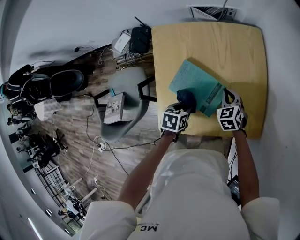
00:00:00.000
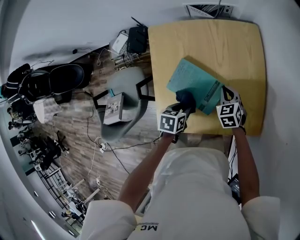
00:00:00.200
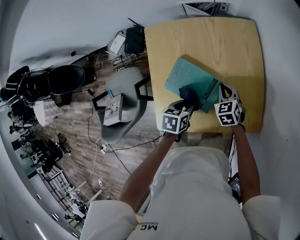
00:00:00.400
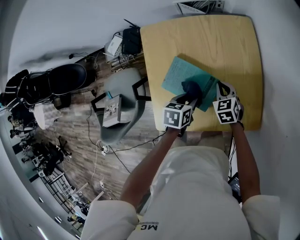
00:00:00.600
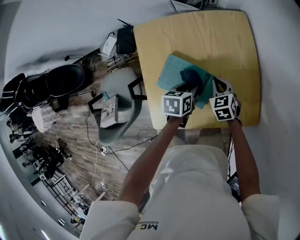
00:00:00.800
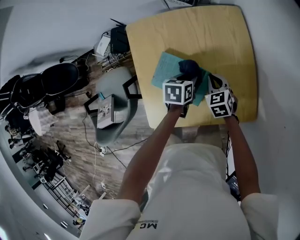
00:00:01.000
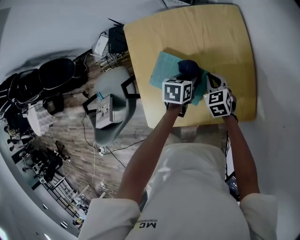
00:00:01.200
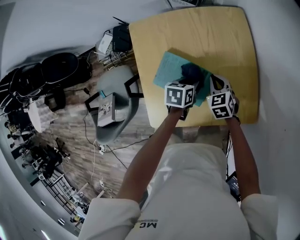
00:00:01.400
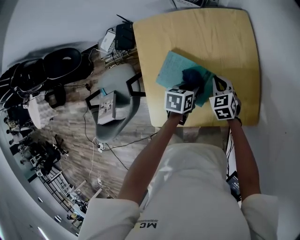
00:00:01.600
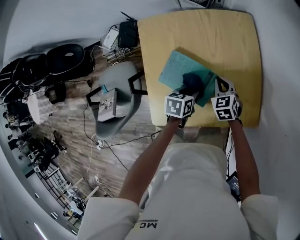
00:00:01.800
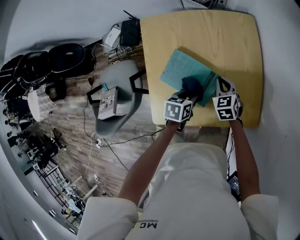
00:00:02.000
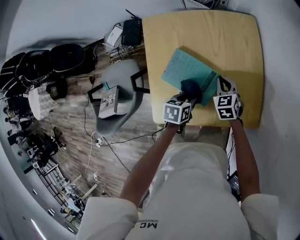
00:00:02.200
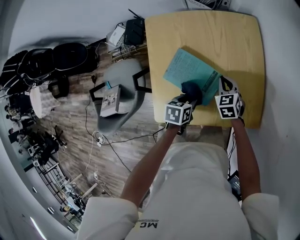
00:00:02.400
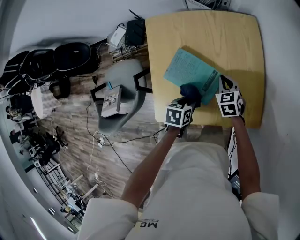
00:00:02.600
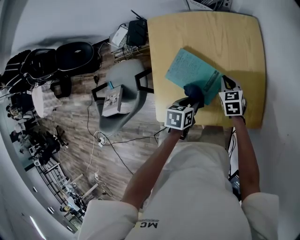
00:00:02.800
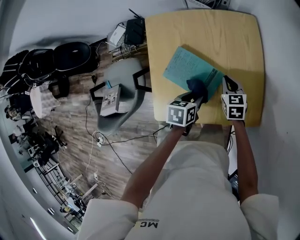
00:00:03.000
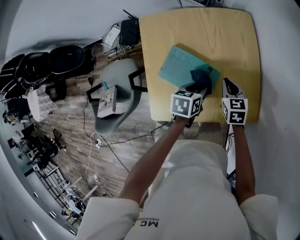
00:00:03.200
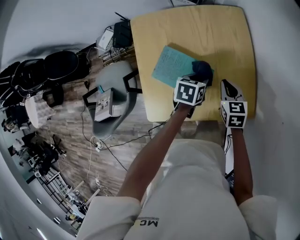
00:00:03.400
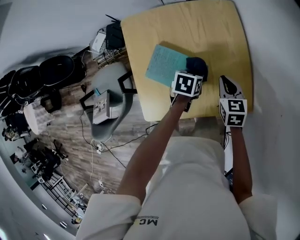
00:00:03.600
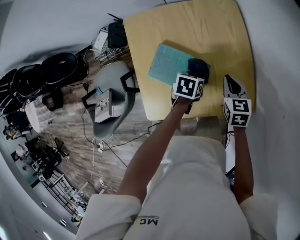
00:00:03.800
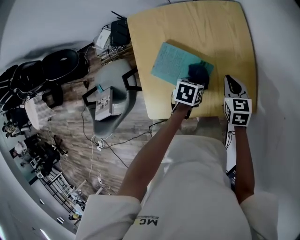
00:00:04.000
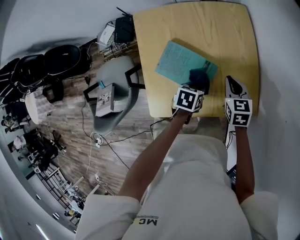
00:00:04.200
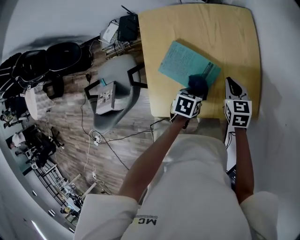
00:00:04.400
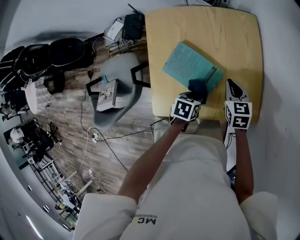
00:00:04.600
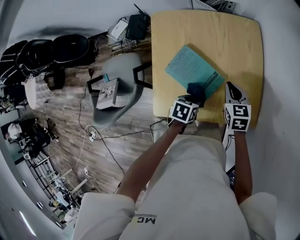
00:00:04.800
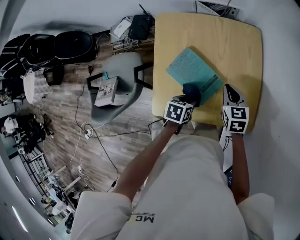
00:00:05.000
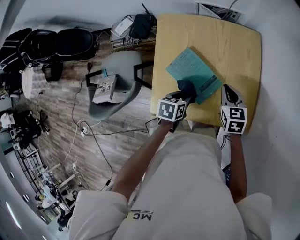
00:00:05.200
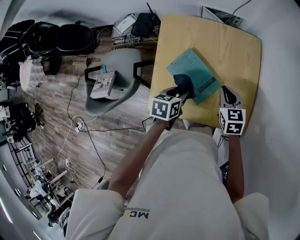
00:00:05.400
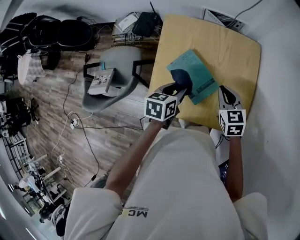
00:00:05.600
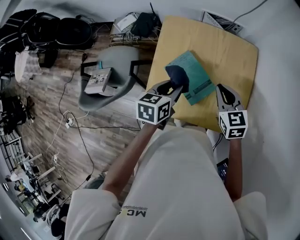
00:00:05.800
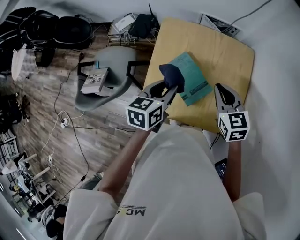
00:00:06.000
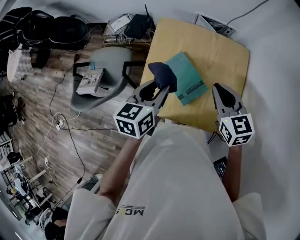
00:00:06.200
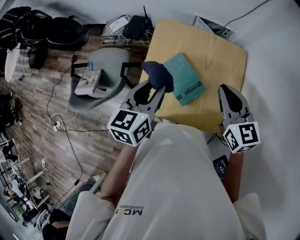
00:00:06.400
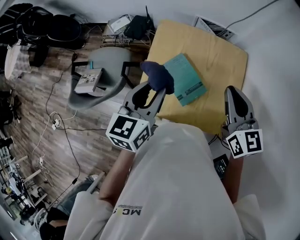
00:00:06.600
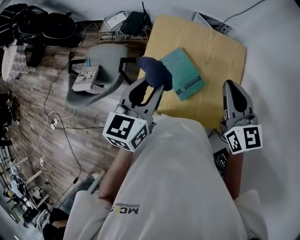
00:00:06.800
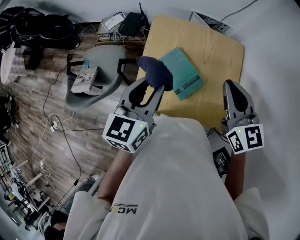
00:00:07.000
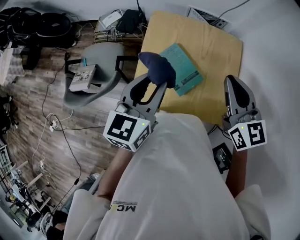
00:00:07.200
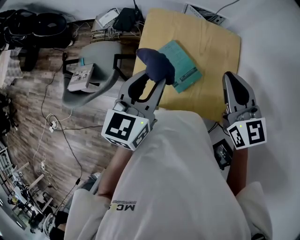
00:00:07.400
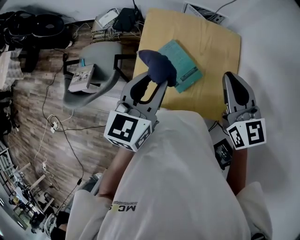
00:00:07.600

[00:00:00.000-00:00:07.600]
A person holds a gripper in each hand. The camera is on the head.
00:00:00.000 to 00:00:01.600: The left gripper is displaced forward and to the right by about 10 cm.
00:00:01.600 to 00:00:03.000: The left gripper travels backward by some 5 cm.
00:00:03.000 to 00:00:04.600: The right gripper ends up approximately 5 cm from where it was; the left gripper goes forward and returns, some 10 cm each way.
00:00:04.600 to 00:00:06.000: The grippers both shift upward by roughly 20 cm. The right gripper changes its angle by about 30 degrees, while the left gripper rotates about 40 degrees.
00:00:06.000 to 00:00:07.600: The grippers both shift upward by about 15 cm. The left gripper turns by some 20 degrees.

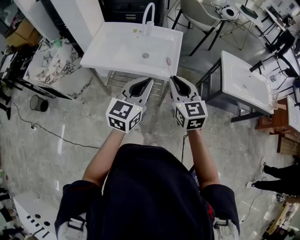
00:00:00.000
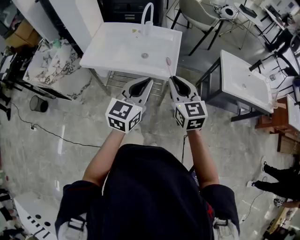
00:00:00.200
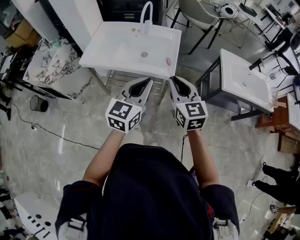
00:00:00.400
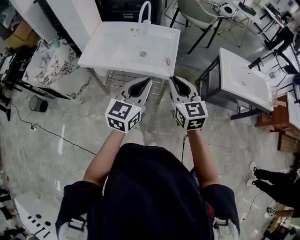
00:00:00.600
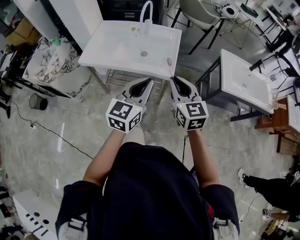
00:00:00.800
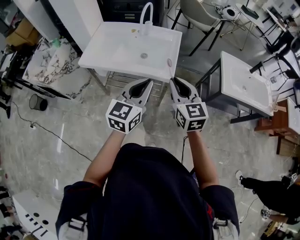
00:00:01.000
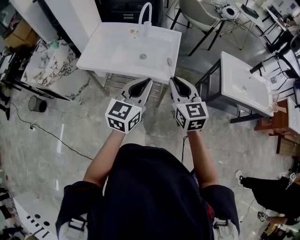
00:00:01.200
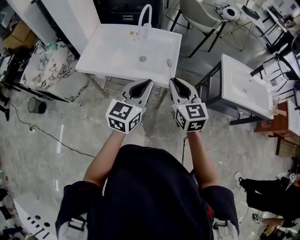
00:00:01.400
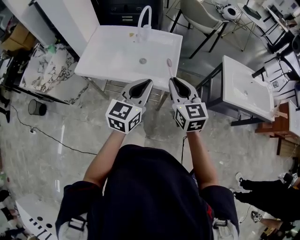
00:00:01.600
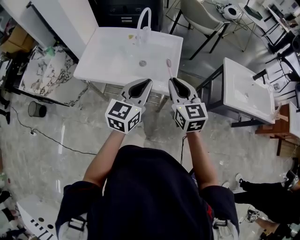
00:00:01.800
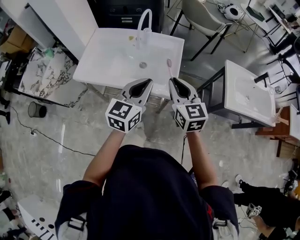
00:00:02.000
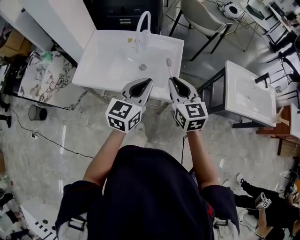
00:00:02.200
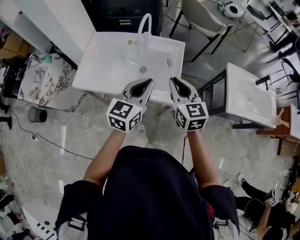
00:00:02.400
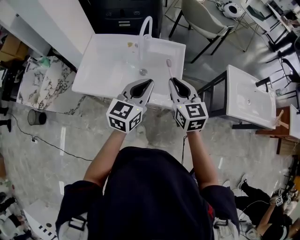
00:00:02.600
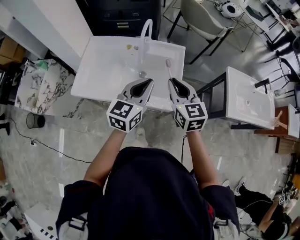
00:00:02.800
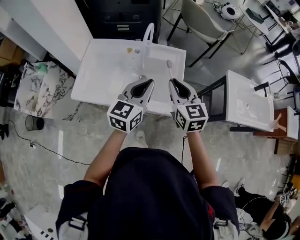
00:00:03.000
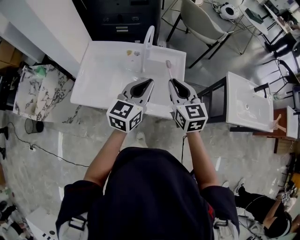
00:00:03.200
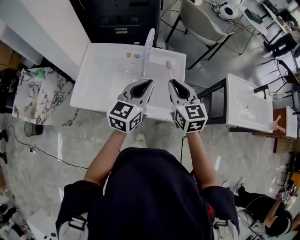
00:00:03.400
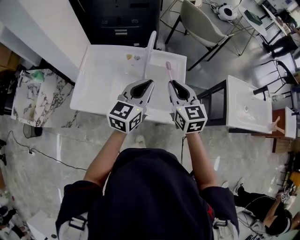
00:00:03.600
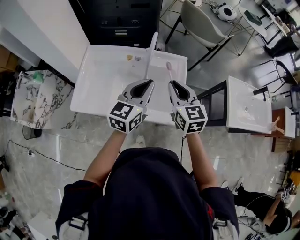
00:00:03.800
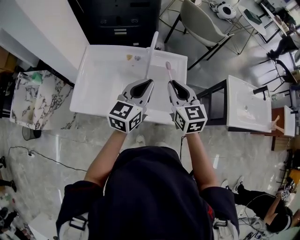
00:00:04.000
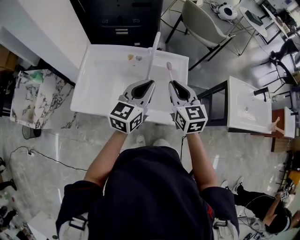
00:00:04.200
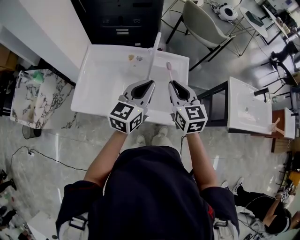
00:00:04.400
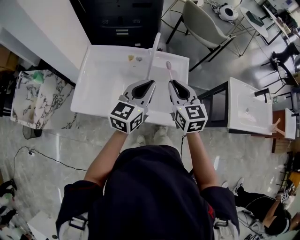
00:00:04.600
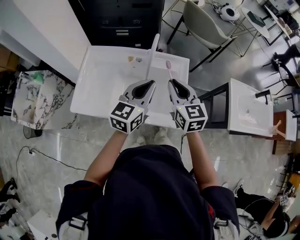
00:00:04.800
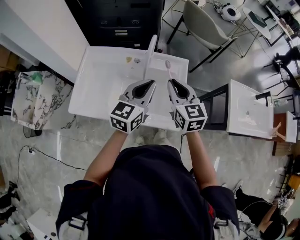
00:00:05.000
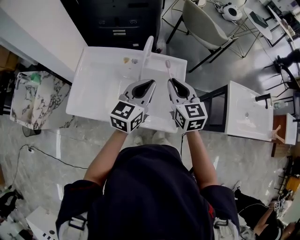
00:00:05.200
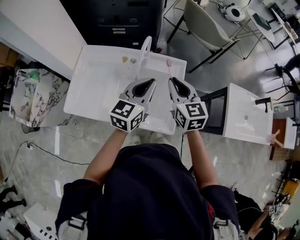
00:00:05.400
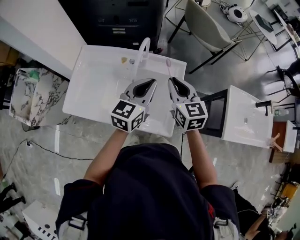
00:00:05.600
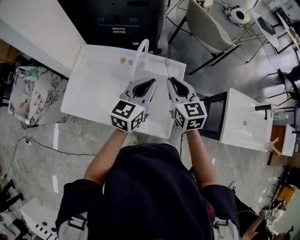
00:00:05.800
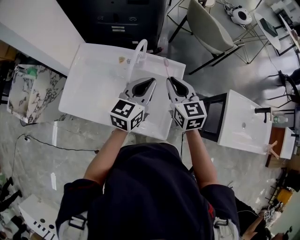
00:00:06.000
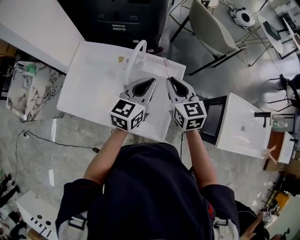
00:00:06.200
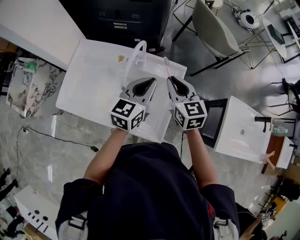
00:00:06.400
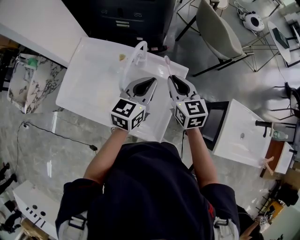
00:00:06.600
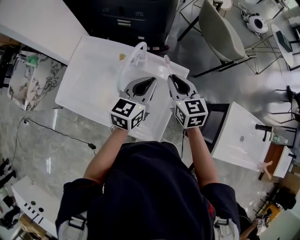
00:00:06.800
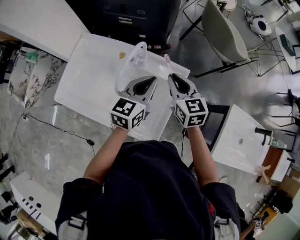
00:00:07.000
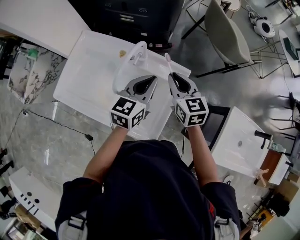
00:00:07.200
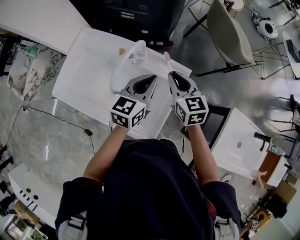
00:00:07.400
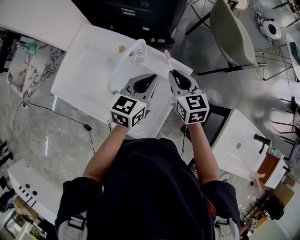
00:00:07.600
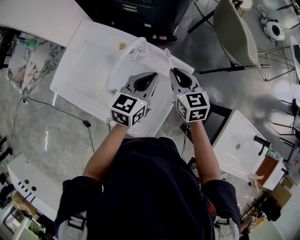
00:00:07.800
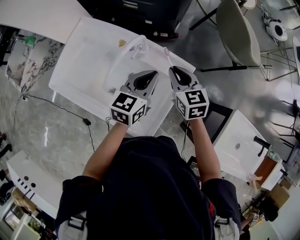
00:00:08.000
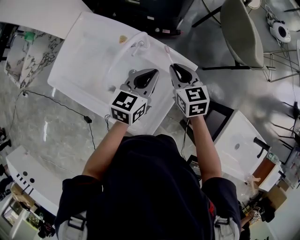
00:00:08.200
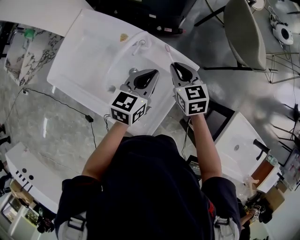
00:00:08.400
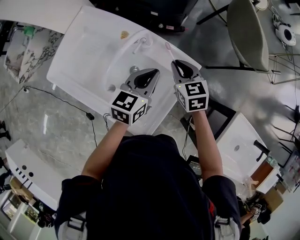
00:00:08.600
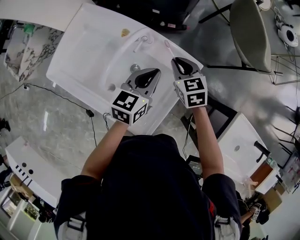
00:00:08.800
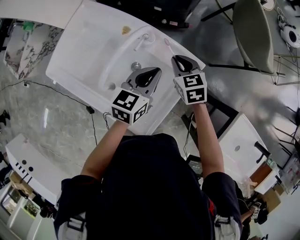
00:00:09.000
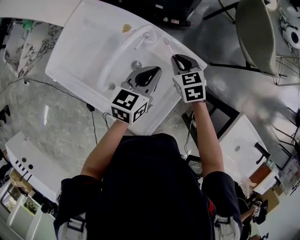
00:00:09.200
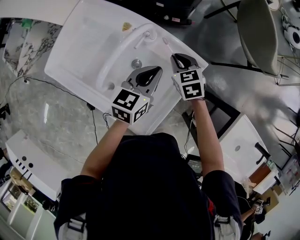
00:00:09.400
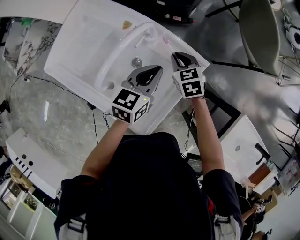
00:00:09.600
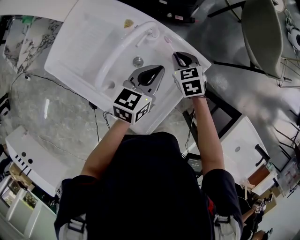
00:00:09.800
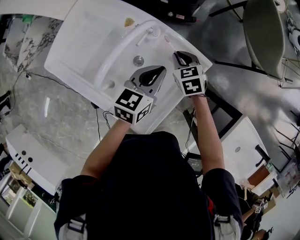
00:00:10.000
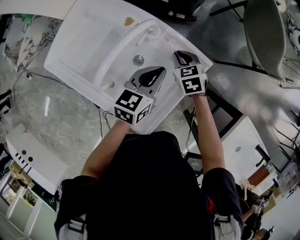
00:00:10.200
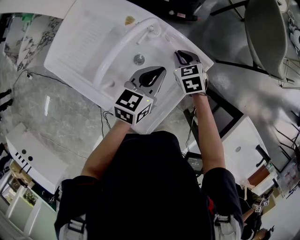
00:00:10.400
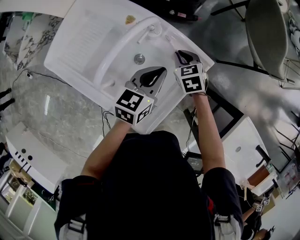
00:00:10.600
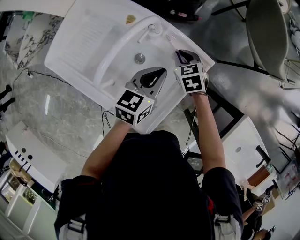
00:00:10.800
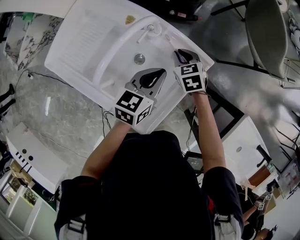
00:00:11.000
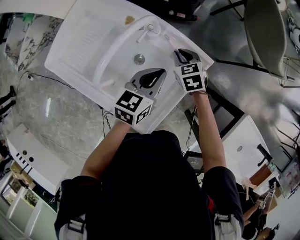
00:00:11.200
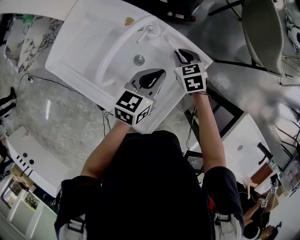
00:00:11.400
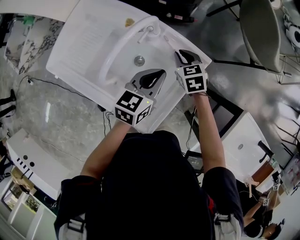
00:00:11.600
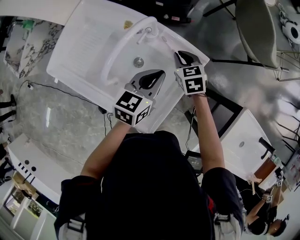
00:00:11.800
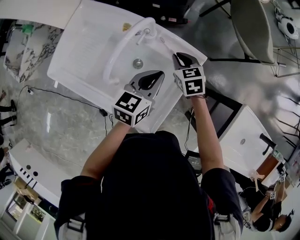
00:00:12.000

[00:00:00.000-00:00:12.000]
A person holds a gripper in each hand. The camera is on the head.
00:00:00.000 to 00:00:01.600: The grippers both shift forward by approximately 10 cm.
00:00:01.600 to 00:00:03.000: Both grippers move forward, about 15 cm.
00:00:03.000 to 00:00:04.400: Both grippers move forward, approximately 5 cm.
00:00:04.400 to 00:00:06.000: Both grippers travel together forward and to the right, approximately 10 cm.
00:00:06.000 to 00:00:07.600: Both grippers travel together forward and downward, approximately 10 cm.
00:00:07.600 to 00:00:09.000: The right gripper heads downward, covering approximately 10 cm; the left gripper moves downward, some 5 cm.
00:00:09.000 to 00:00:10.400: The right gripper heads downward, covering roughly 5 cm.
00:00:10.400 to 00:00:12.000: The right gripper ends up about 5 cm from where it was.

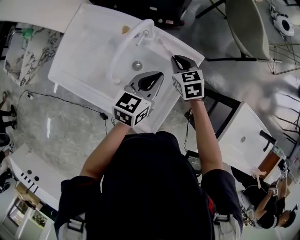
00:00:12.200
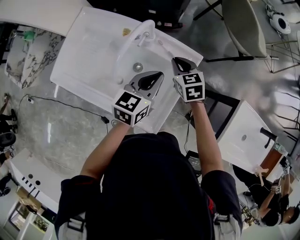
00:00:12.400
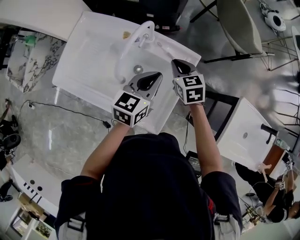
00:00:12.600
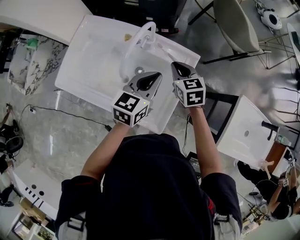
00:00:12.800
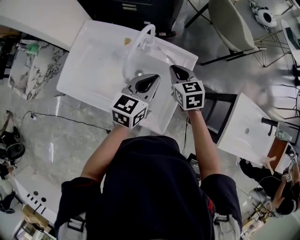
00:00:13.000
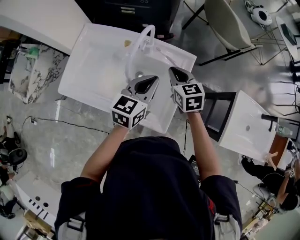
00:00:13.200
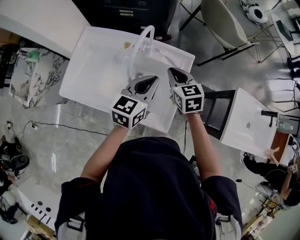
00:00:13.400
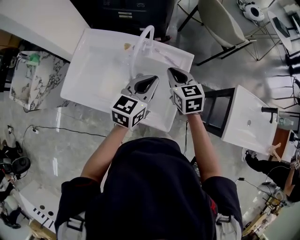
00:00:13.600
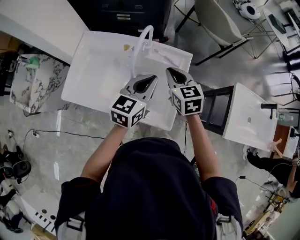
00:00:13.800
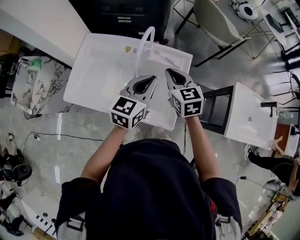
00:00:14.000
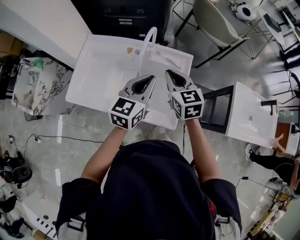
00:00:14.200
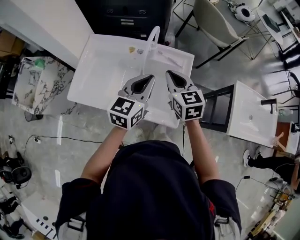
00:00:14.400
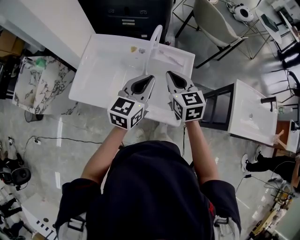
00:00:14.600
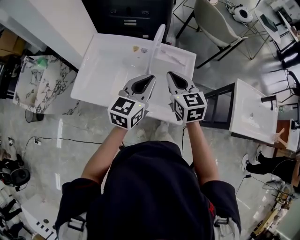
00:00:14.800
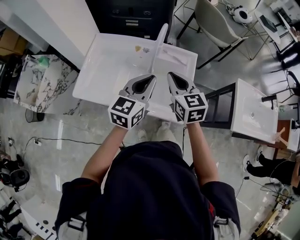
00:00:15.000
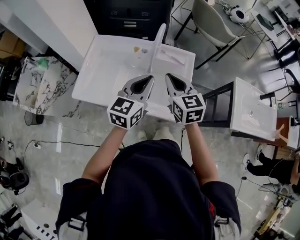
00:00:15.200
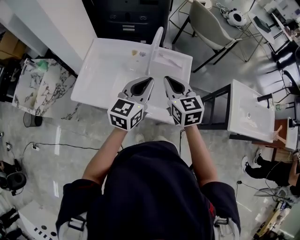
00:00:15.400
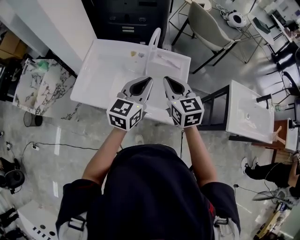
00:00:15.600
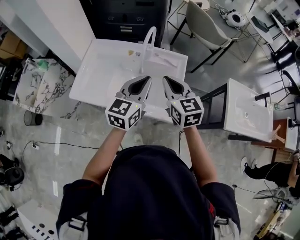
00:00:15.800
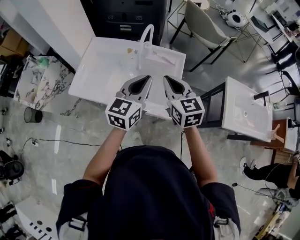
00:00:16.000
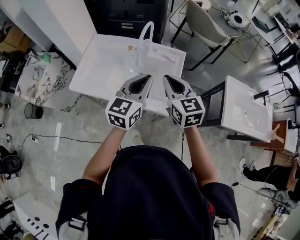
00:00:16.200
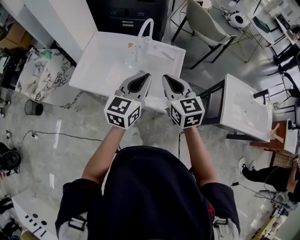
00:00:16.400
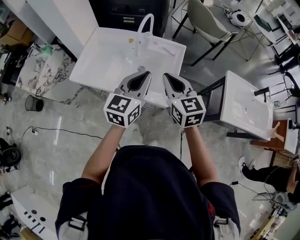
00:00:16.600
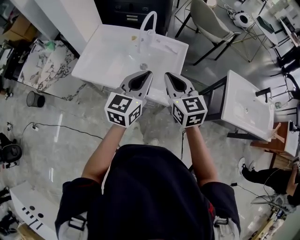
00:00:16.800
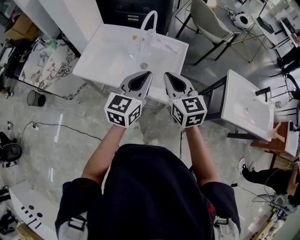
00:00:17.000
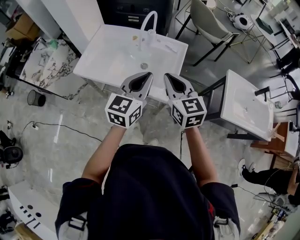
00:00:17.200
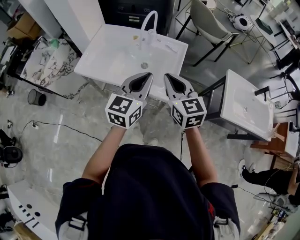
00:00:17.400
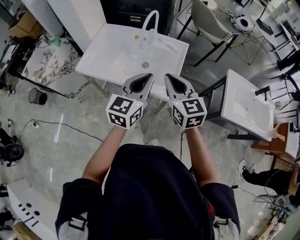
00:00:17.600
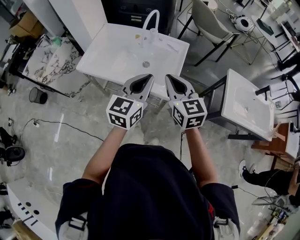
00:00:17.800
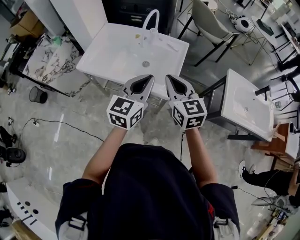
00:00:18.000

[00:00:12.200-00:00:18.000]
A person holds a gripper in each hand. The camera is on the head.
00:00:12.200 to 00:00:13.600: Both grippers travel together upward and backward, approximately 15 cm.
00:00:13.600 to 00:00:15.000: The left gripper shifts about 10 cm to the left and backward. The right gripper goes approximately 15 cm backward, upward and to the left.
00:00:15.000 to 00:00:16.600: The grippers both shift backward and to the right by roughly 10 cm.
00:00:16.600 to 00:00:18.000: Both grippers move backward, some 10 cm.
